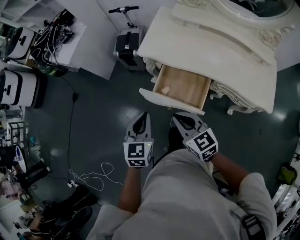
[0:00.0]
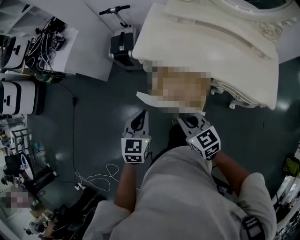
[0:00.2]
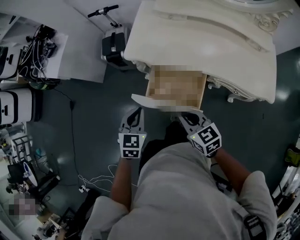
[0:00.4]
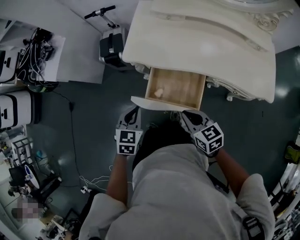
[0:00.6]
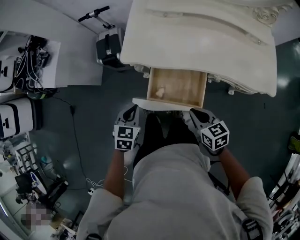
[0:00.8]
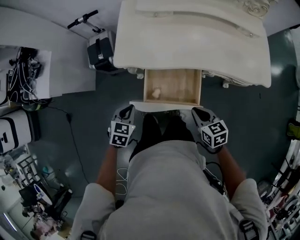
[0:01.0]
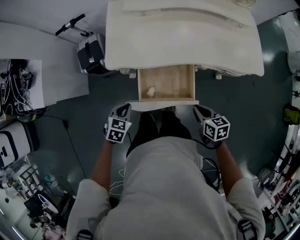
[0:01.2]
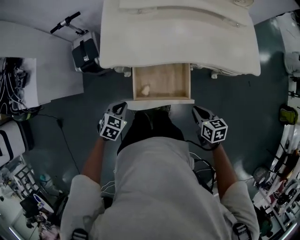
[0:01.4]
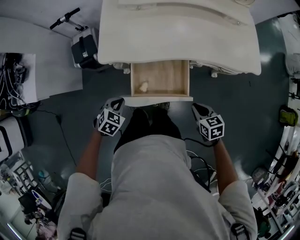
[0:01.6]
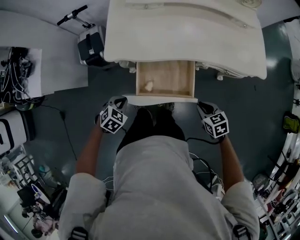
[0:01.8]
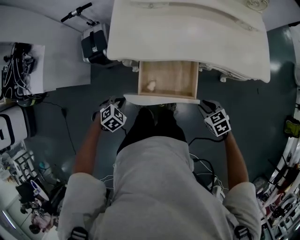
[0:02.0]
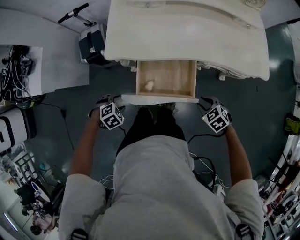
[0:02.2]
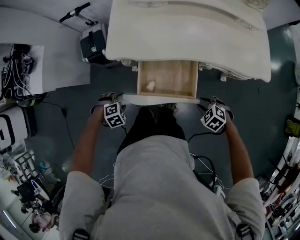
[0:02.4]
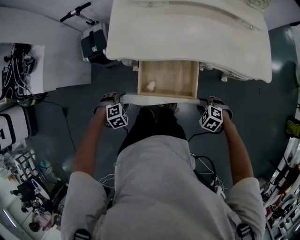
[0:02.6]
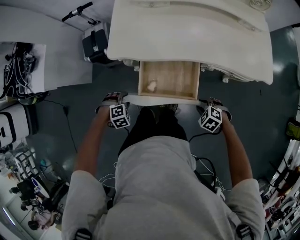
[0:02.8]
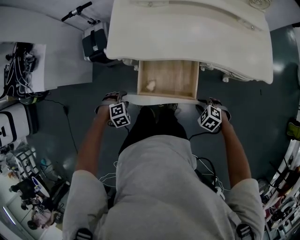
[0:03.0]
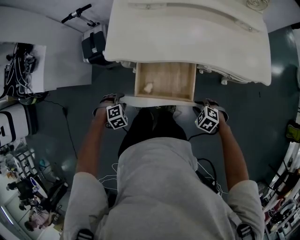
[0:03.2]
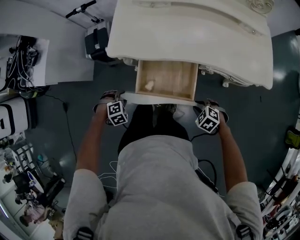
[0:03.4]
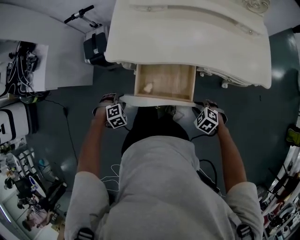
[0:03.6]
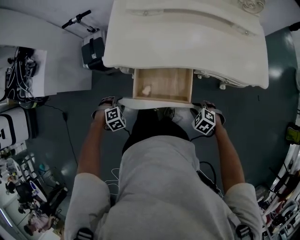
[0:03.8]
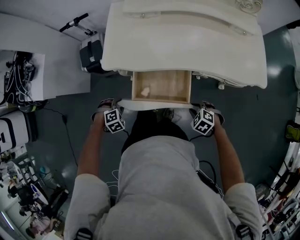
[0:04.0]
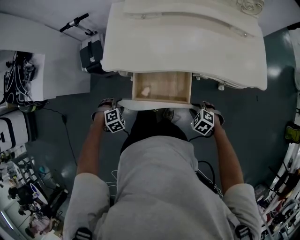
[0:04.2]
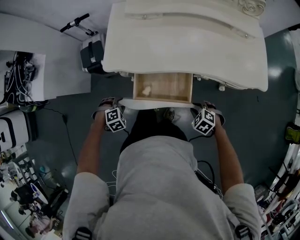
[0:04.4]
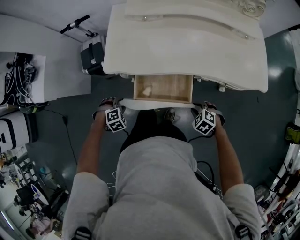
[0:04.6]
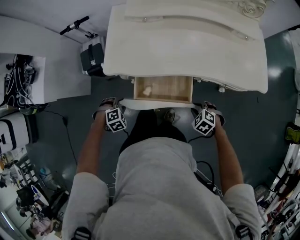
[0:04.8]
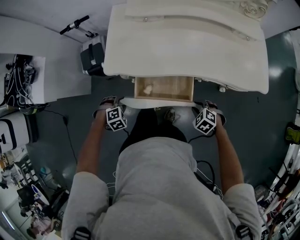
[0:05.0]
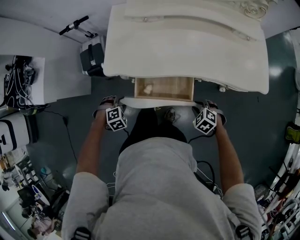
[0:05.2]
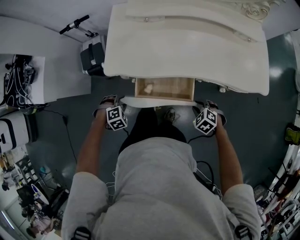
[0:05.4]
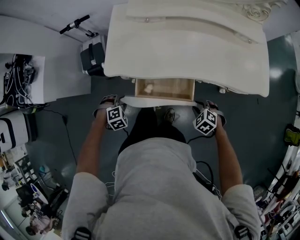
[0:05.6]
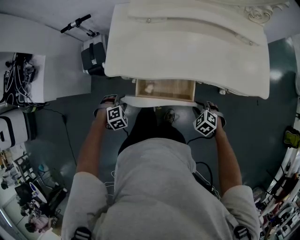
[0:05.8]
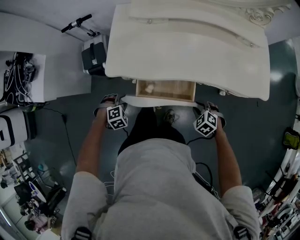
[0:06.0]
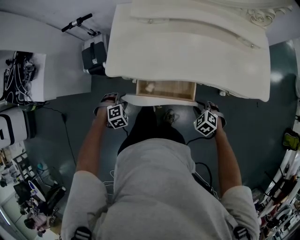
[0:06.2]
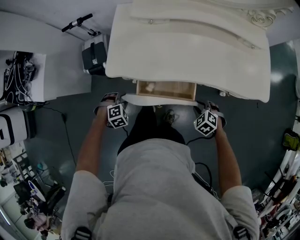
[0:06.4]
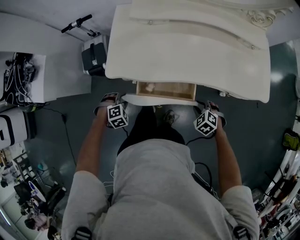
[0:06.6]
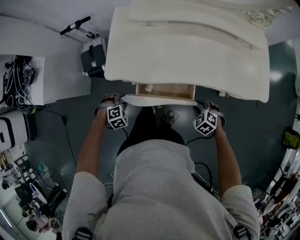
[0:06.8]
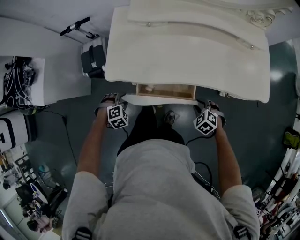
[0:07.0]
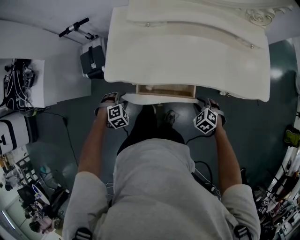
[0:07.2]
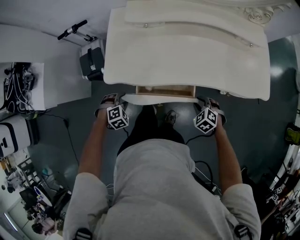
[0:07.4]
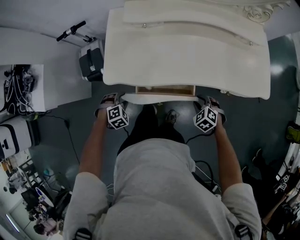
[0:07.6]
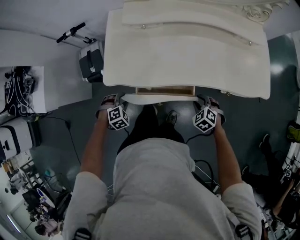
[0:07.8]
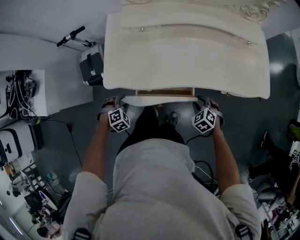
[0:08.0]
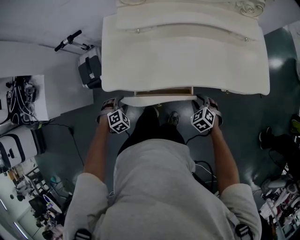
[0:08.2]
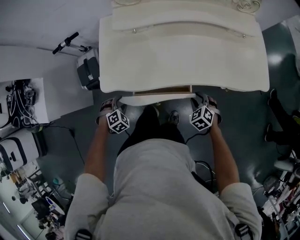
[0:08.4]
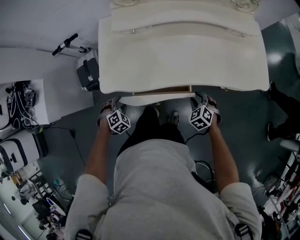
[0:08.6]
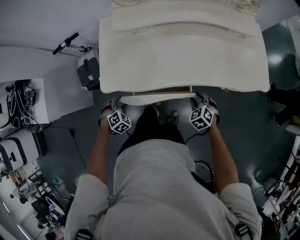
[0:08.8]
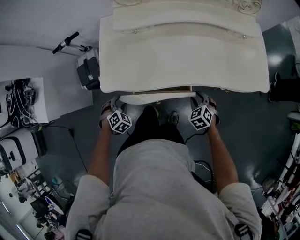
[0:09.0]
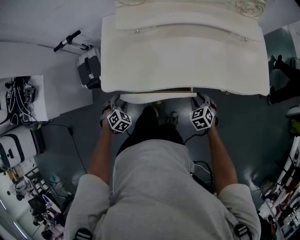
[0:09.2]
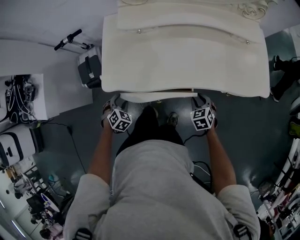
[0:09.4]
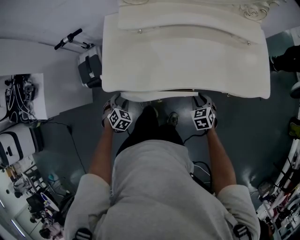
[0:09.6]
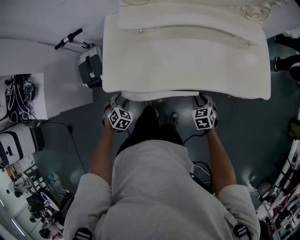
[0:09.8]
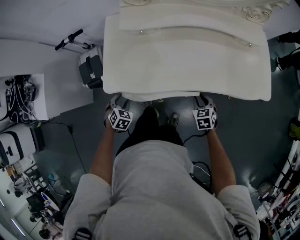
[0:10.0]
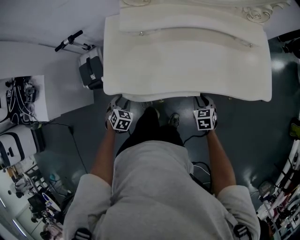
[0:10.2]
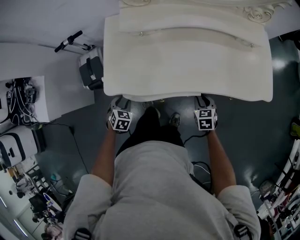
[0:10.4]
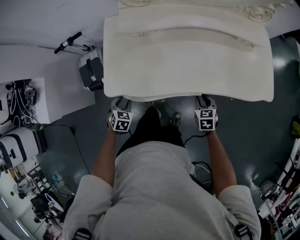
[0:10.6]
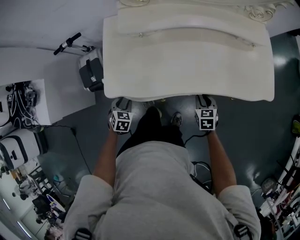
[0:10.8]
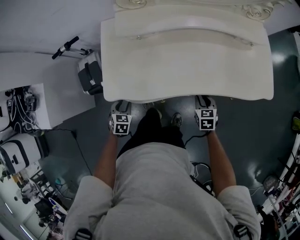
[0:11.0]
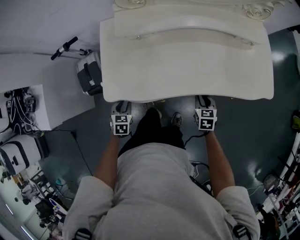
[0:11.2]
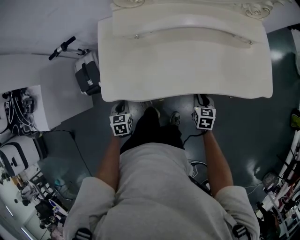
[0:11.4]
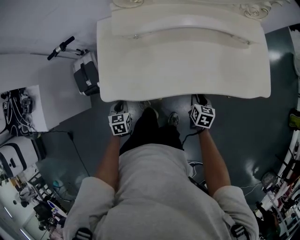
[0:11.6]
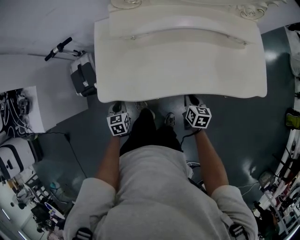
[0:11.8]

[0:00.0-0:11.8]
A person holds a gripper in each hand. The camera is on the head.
0:00.0 to 0:01.4: The left gripper travels downward by about 20 cm, and rotates about 60 degrees. The right gripper ends up roughly 25 cm from where it was, and swivels approximately 50 degrees.
0:01.4 to 0:03.0: The two grippers go some 10 cm downward. The left gripper turns by approximately 50 degrees, and opens, while the right gripper rotates around the line of its fingers by some 60 degrees, counterclockwise from behind, and opens up.
0:03.0 to 0:04.4: There are only small adjustments of the grippers.
0:04.4 to 0:06.0: The right gripper changes place by approximately 5 cm.
0:06.0 to 0:07.4: There are only small adjustments of the grippers.
0:07.4 to 0:08.8: There are only small adjustments of the grippers.
0:08.8 to 0:10.4: The left gripper changes its angle by approximately 30 degrees, while the right gripper swivels roughly 30 degrees.
0:10.4 to 0:11.8: The right gripper rotates about 30 degrees, and closes. The left gripper changes its angle by roughly 30 degrees, and closes up.

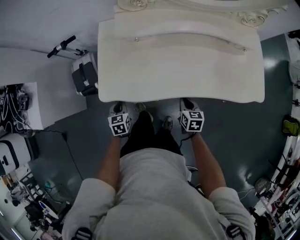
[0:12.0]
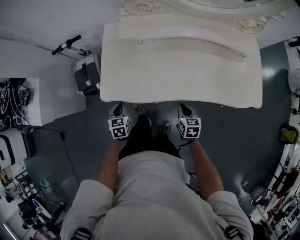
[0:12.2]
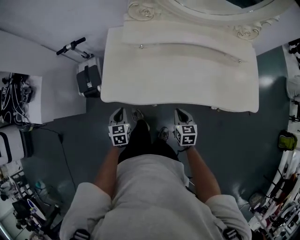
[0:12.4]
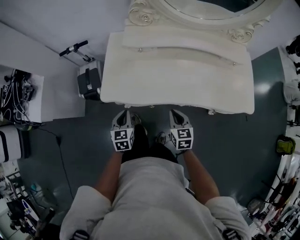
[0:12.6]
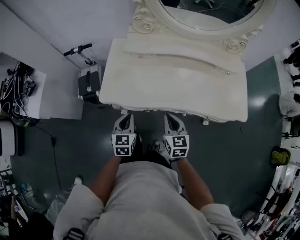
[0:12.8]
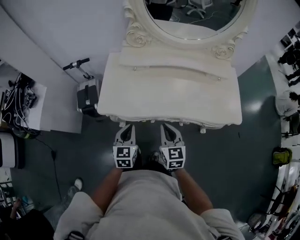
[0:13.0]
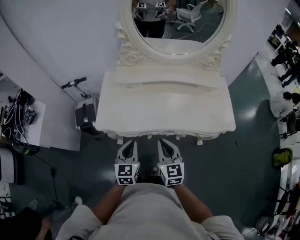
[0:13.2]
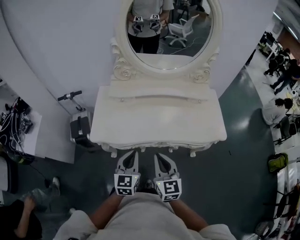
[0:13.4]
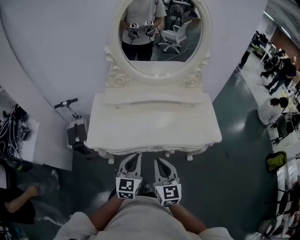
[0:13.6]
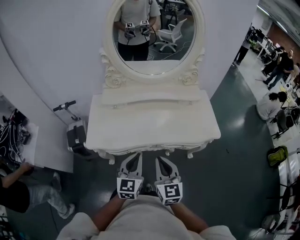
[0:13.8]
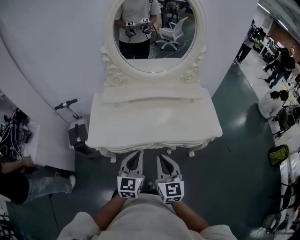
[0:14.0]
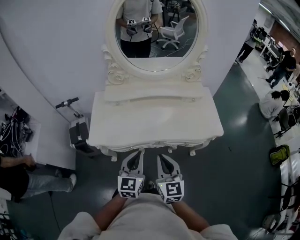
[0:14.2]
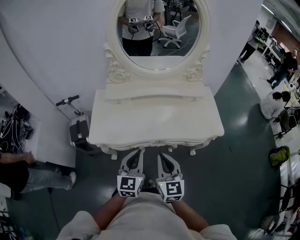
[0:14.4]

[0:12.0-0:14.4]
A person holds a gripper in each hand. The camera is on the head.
0:12.0 to 0:13.2: The left gripper goes about 30 cm upward, to the right and backward, and rotates about 30 degrees; the right gripper is displaced upward by some 25 cm, and rotates some 30 degrees.
0:13.2 to 0:14.4: The right gripper shifts roughly 5 cm upward, while the left gripper shifts roughly 10 cm upward and to the right.

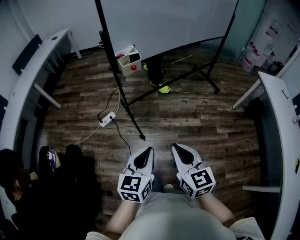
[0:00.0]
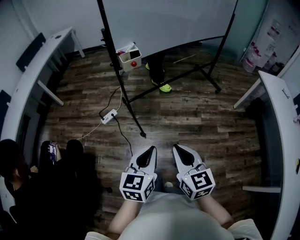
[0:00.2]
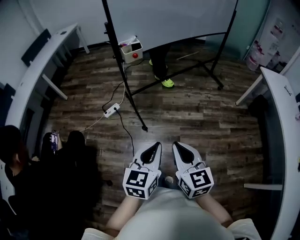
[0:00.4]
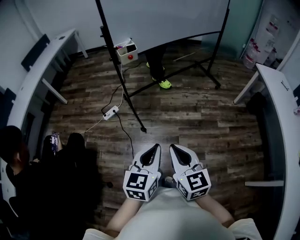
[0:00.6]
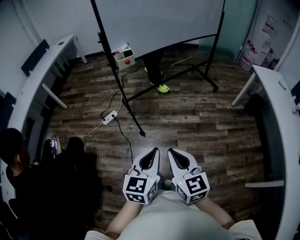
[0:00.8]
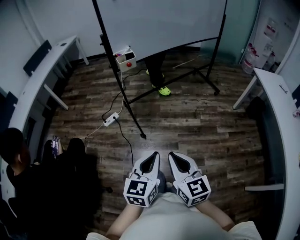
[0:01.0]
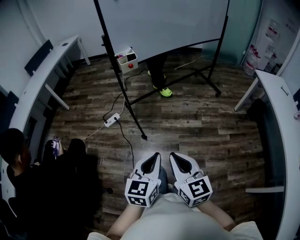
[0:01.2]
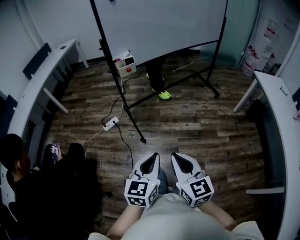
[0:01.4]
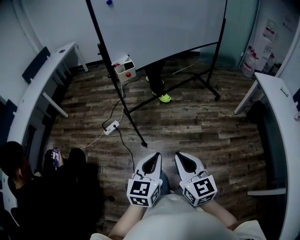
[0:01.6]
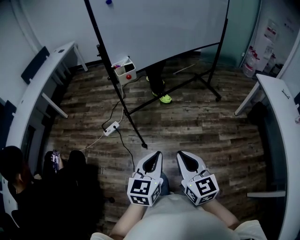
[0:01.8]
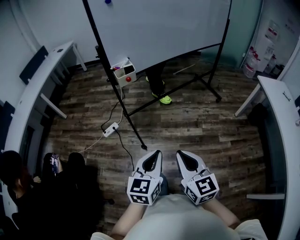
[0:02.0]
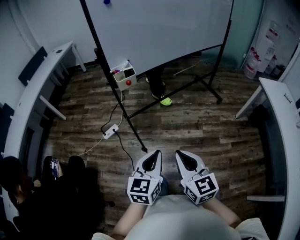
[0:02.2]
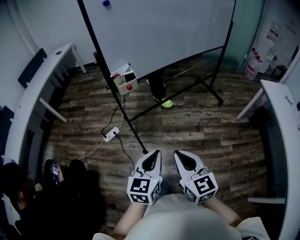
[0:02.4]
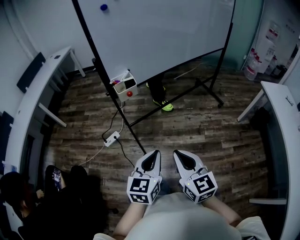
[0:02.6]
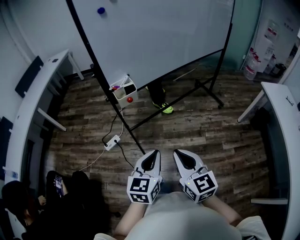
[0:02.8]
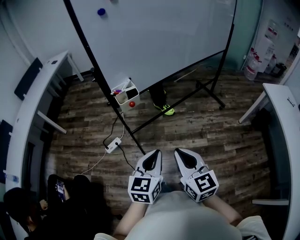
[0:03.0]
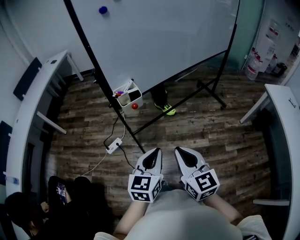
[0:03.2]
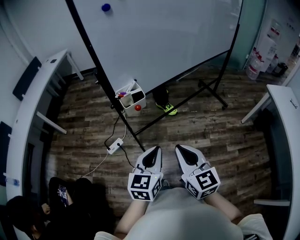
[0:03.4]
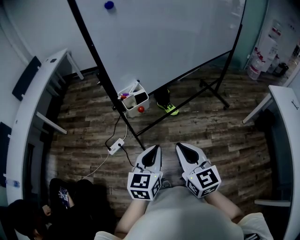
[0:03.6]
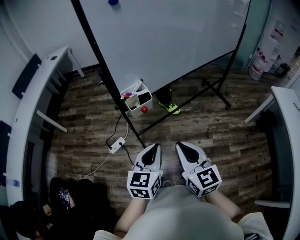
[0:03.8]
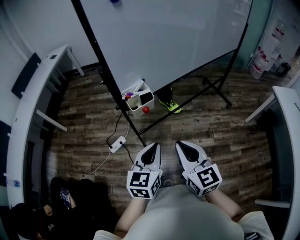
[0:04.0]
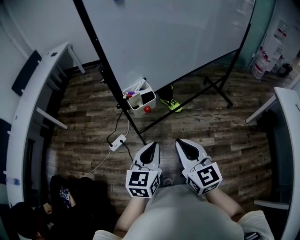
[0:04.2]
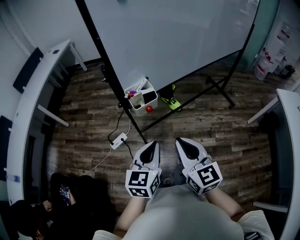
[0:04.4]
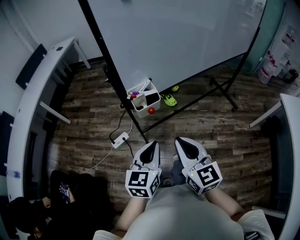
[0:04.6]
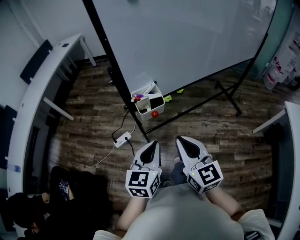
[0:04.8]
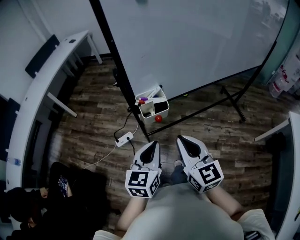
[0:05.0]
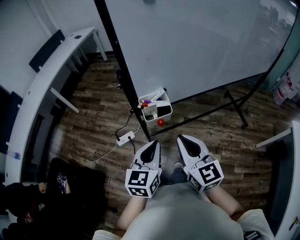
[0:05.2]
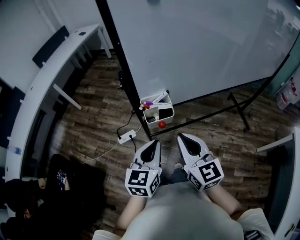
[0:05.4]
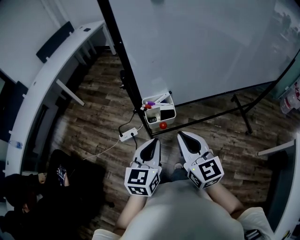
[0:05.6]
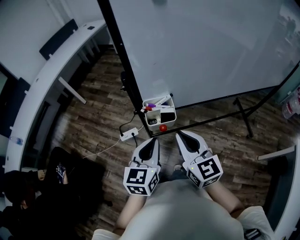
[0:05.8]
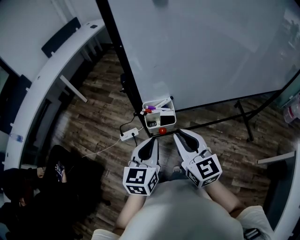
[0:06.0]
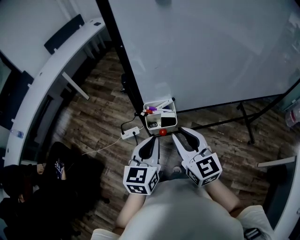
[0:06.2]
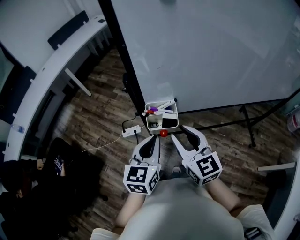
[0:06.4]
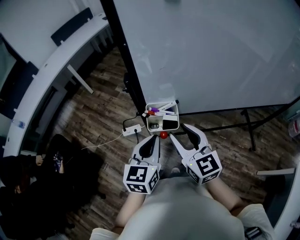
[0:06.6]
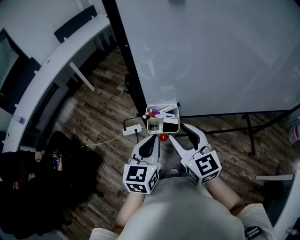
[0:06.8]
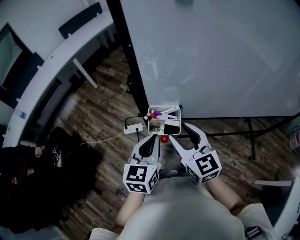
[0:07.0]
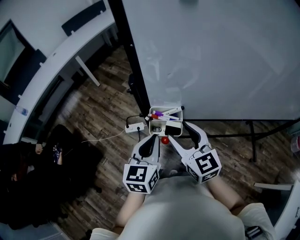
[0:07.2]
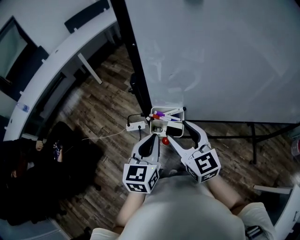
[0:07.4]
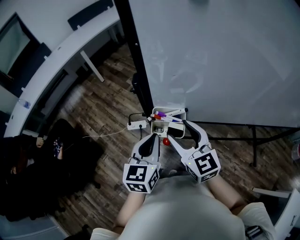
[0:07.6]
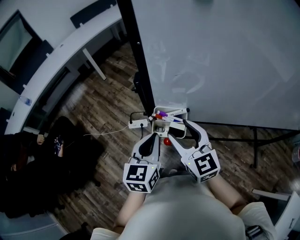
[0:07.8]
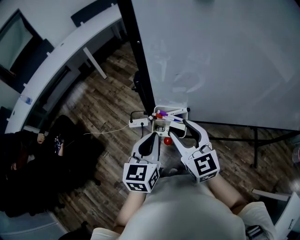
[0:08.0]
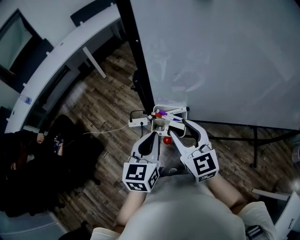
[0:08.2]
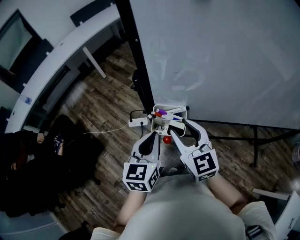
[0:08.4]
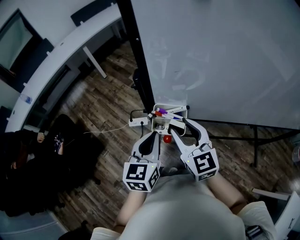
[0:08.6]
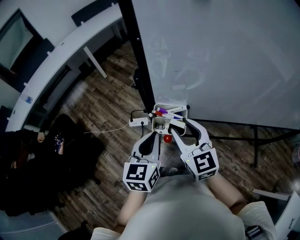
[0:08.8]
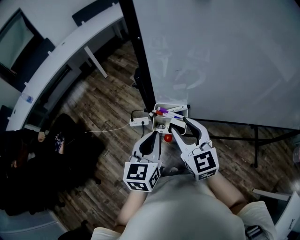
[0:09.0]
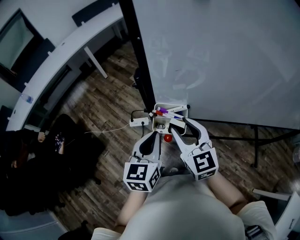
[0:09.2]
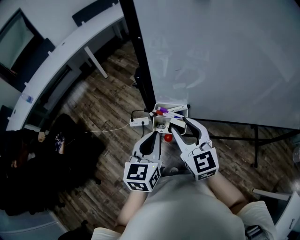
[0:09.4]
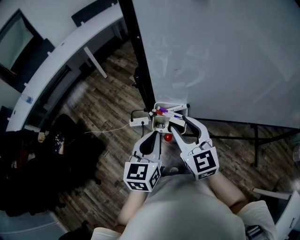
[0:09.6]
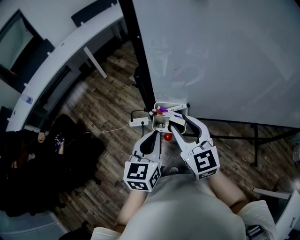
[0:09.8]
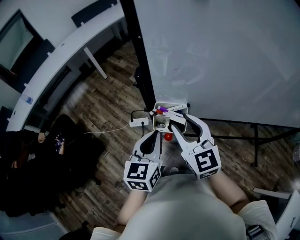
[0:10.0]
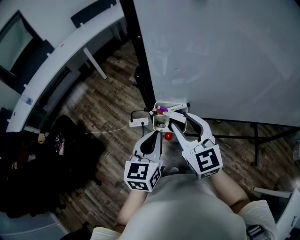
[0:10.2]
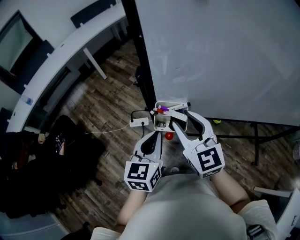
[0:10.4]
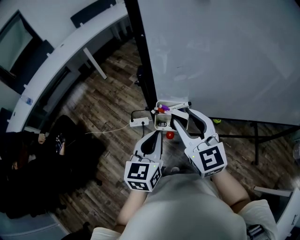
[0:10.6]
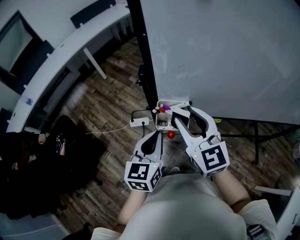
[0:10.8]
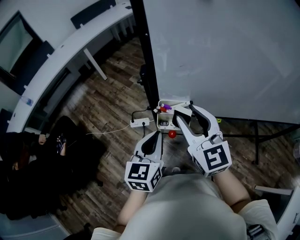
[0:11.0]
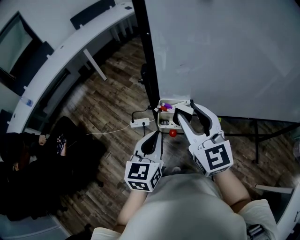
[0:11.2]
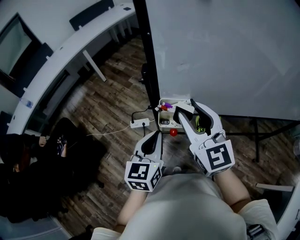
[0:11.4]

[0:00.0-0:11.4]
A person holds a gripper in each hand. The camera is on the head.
0:00.0 to 0:01.4: The grippers both shift backward and to the right by some 15 cm.
0:01.4 to 0:02.8: Both grippers travel together forward, some 25 cm.
0:02.8 to 0:04.2: Both grippers travel together forward and to the left, approximately 15 cm.
0:04.2 to 0:05.6: The grippers both shift forward by some 10 cm.
0:05.6 to 0:07.2: Both grippers move forward, some 10 cm. The right gripper changes its angle by approximately 20 degrees, and opens up.
0:07.2 to 0:10.0: There are only small adjustments of the grippers.
0:10.0 to 0:11.4: The right gripper is displaced upward by approximately 5 cm.
